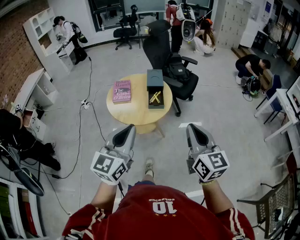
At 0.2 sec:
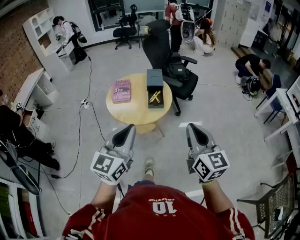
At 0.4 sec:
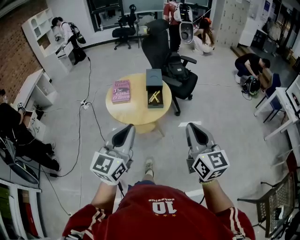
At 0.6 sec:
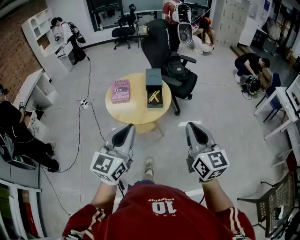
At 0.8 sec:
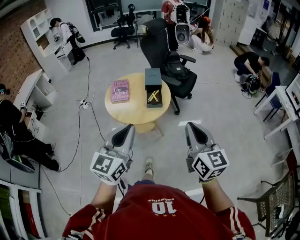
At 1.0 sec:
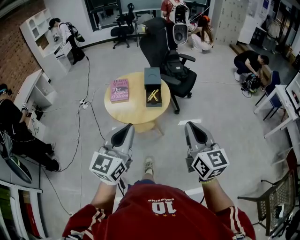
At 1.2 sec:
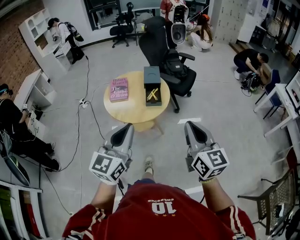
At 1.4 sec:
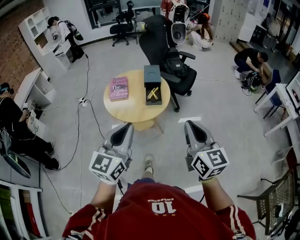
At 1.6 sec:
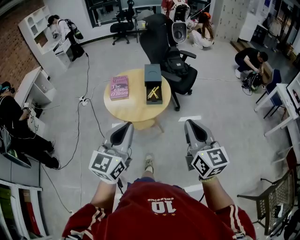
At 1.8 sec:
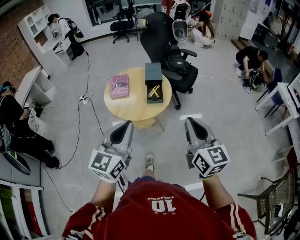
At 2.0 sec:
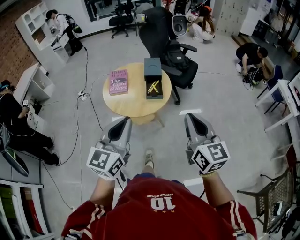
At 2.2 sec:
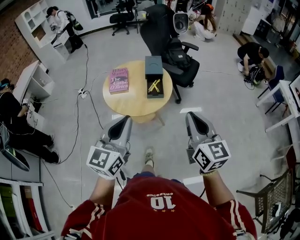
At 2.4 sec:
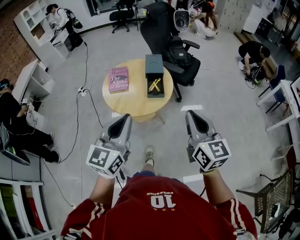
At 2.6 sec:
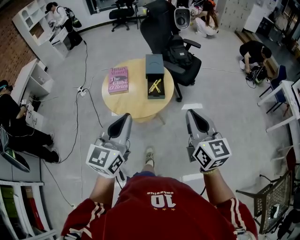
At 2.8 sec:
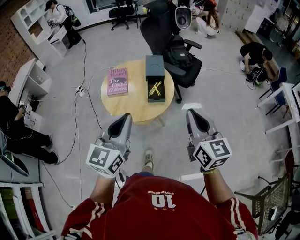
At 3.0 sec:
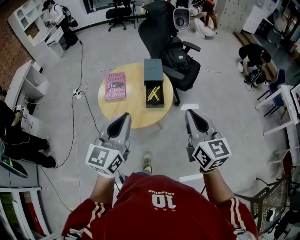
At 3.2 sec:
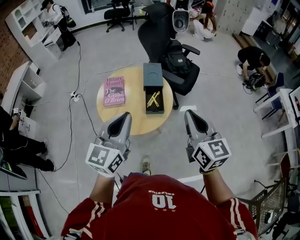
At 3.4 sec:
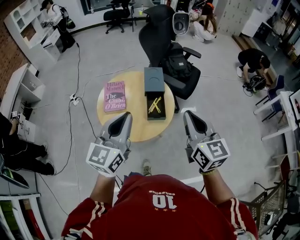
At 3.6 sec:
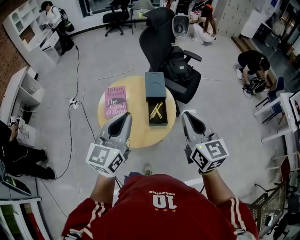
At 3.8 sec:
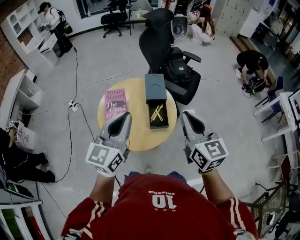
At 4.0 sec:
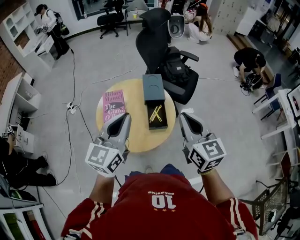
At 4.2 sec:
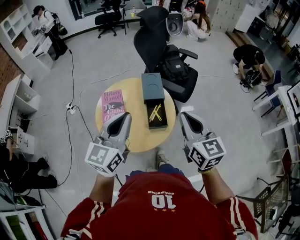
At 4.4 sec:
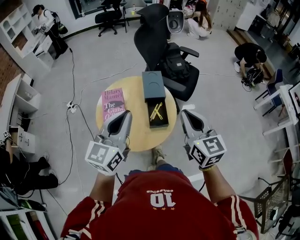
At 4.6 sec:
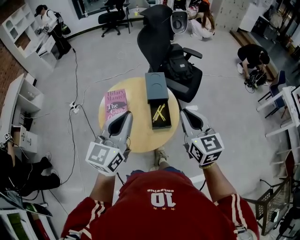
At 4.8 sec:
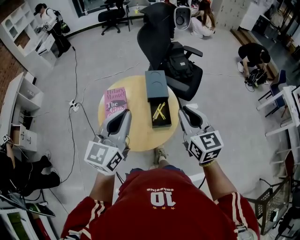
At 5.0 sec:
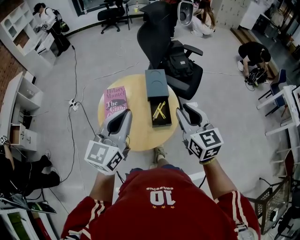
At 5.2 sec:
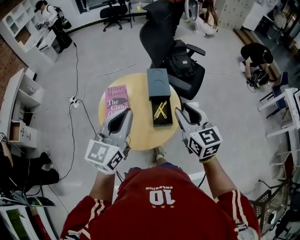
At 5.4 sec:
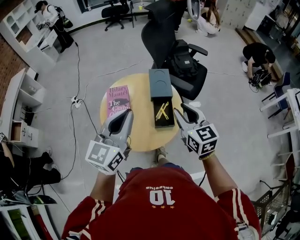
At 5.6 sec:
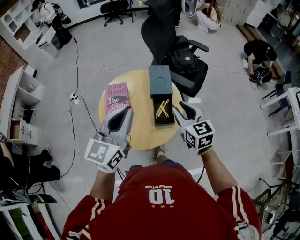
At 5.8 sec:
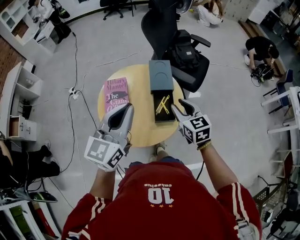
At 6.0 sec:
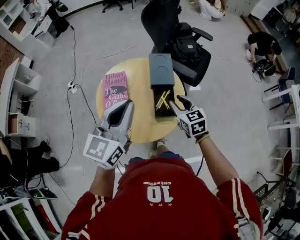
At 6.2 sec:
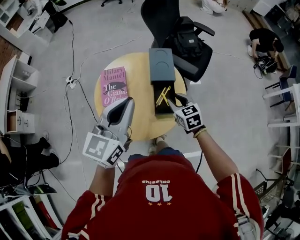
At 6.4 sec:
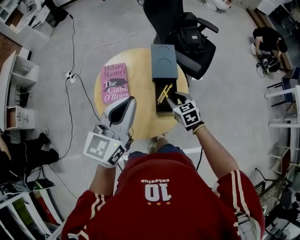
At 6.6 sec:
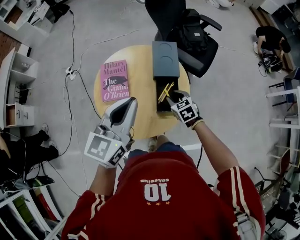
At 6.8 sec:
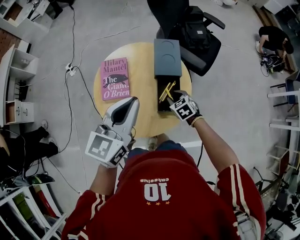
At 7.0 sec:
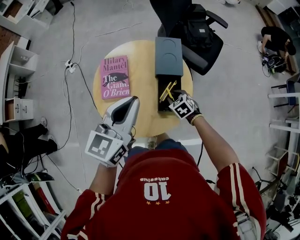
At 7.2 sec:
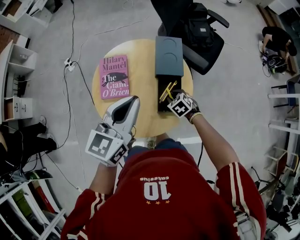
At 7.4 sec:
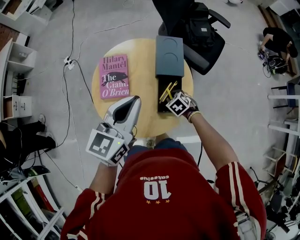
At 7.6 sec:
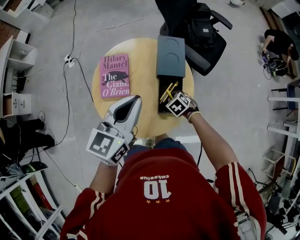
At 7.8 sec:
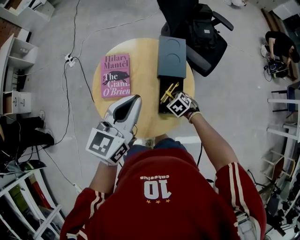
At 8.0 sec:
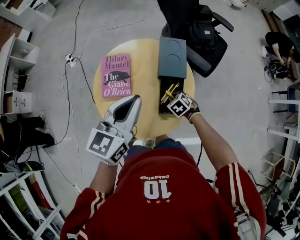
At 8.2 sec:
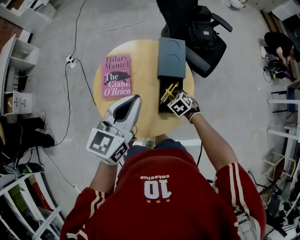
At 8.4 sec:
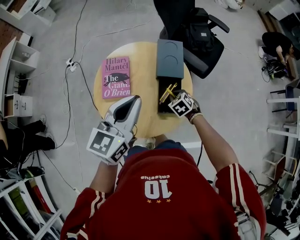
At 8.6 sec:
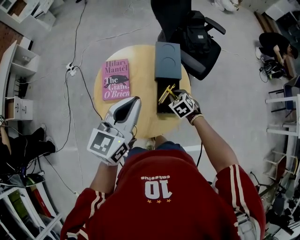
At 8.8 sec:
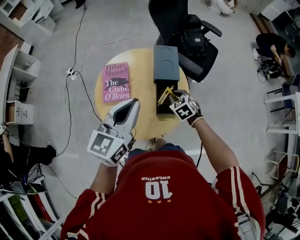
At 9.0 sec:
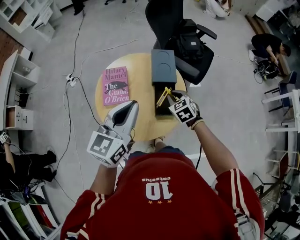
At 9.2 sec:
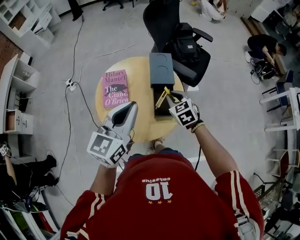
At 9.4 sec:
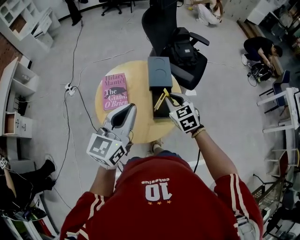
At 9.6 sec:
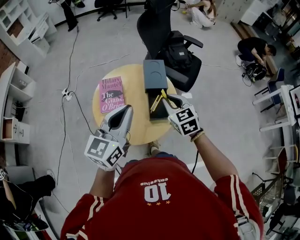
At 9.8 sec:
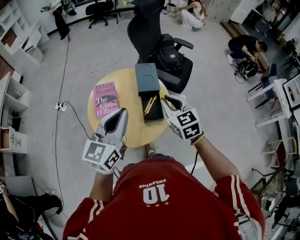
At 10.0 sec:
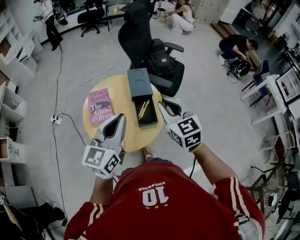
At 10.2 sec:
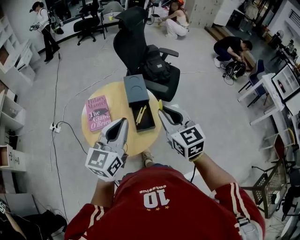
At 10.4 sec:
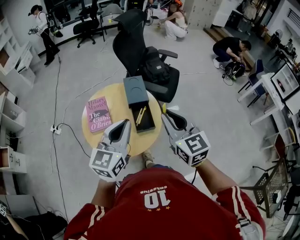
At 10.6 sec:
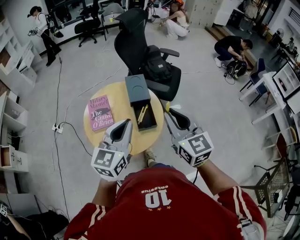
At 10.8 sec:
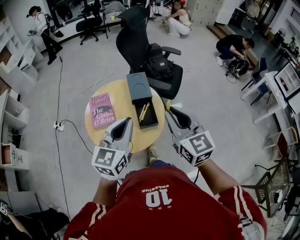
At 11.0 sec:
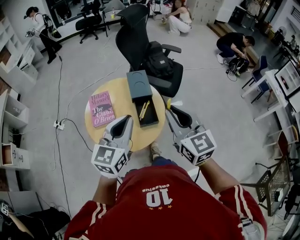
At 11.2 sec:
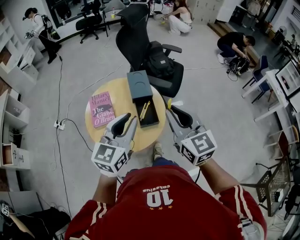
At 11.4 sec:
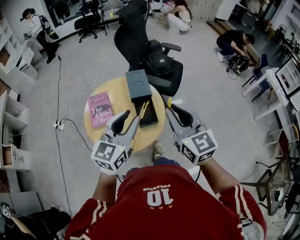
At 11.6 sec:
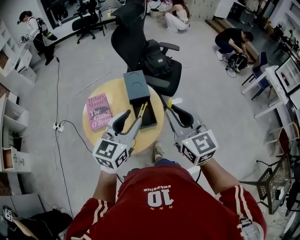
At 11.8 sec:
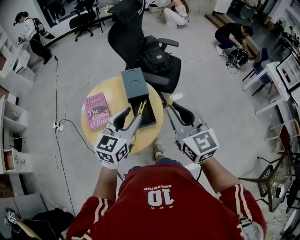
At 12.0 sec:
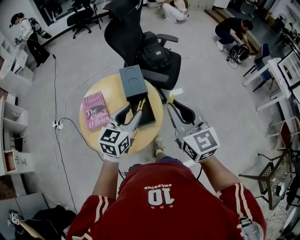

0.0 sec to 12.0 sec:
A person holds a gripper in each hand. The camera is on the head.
0.0 sec to 1.6 sec: The grippers make only small movements.
1.6 sec to 3.0 sec: Both grippers travel together forward, roughly 15 cm.
3.0 sec to 4.4 sec: The two grippers go about 15 cm forward.
4.4 sec to 6.0 sec: The right gripper goes roughly 25 cm downward and forward, turns by approximately 20 degrees, and opens up. Meanwhile the left gripper shifts some 5 cm forward.
6.0 sec to 7.6 sec: The right gripper shifts some 25 cm downward, and tilts its fingers about 40 degrees downward; the left gripper heads downward and forward, covering approximately 10 cm.
7.6 sec to 9.0 sec: The left gripper travels backward by some 5 cm. The right gripper goes about 15 cm upward, and rotates some 30 degrees.
9.0 sec to 10.4 sec: The right gripper heads upward and backward, covering about 35 cm, and points its fingers approximately 40 degrees further upward. Meanwhile the left gripper is displaced backward and to the right by some 10 cm.
10.4 sec to 12.0 sec: The right gripper moves roughly 5 cm. Meanwhile the left gripper travels downward and forward by about 15 cm, and opens.

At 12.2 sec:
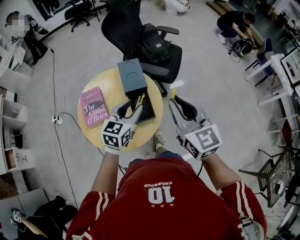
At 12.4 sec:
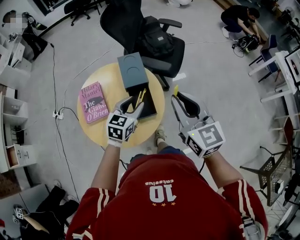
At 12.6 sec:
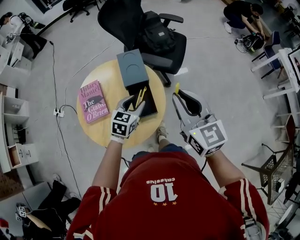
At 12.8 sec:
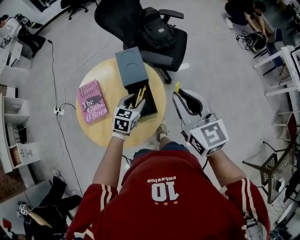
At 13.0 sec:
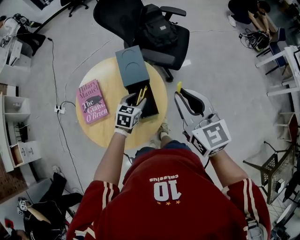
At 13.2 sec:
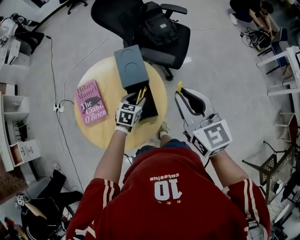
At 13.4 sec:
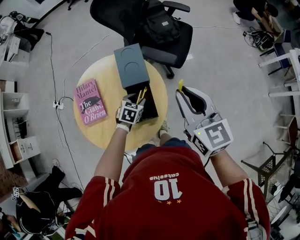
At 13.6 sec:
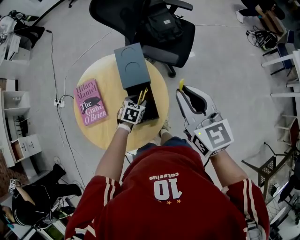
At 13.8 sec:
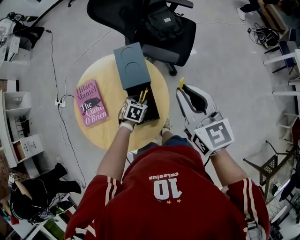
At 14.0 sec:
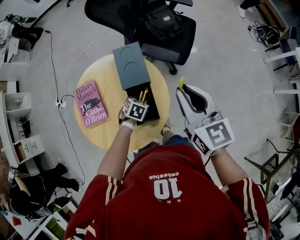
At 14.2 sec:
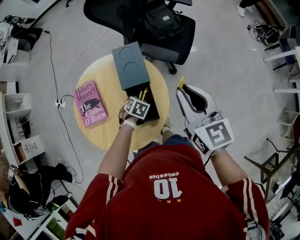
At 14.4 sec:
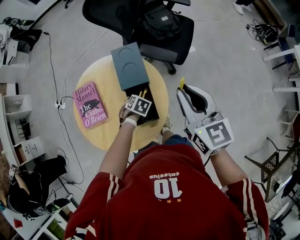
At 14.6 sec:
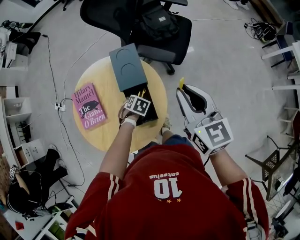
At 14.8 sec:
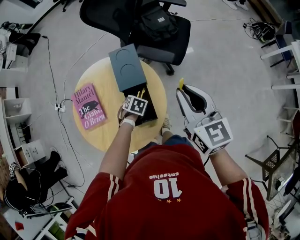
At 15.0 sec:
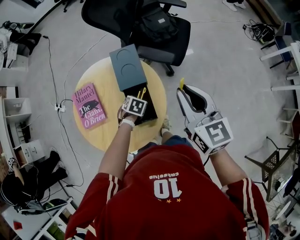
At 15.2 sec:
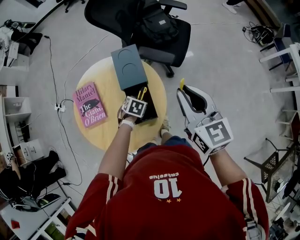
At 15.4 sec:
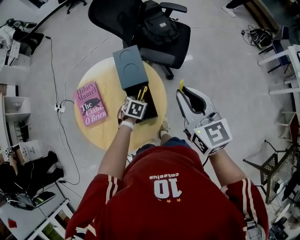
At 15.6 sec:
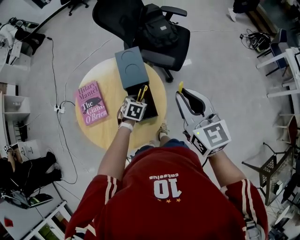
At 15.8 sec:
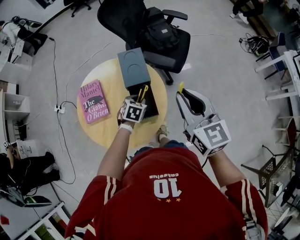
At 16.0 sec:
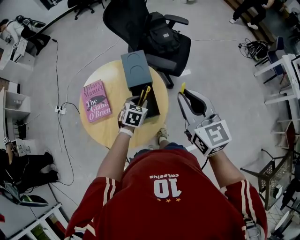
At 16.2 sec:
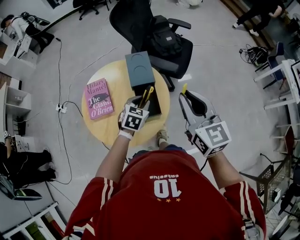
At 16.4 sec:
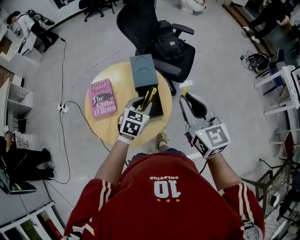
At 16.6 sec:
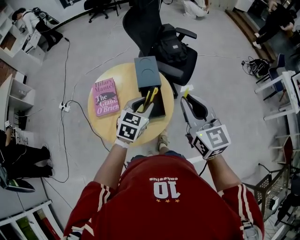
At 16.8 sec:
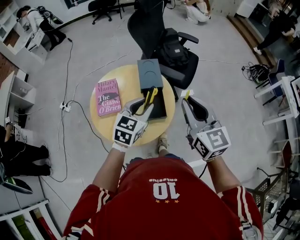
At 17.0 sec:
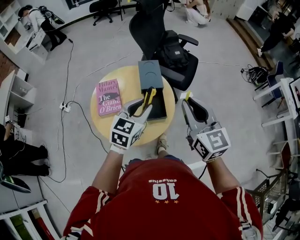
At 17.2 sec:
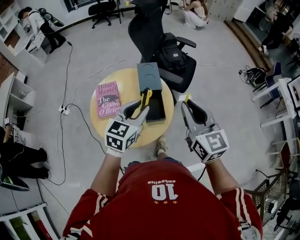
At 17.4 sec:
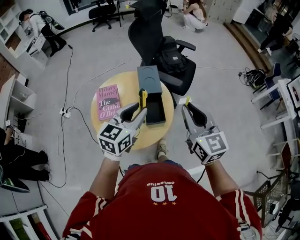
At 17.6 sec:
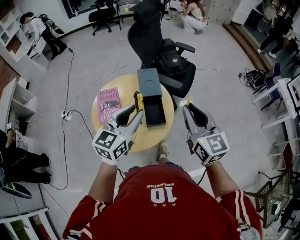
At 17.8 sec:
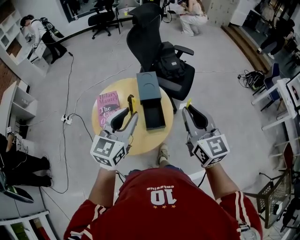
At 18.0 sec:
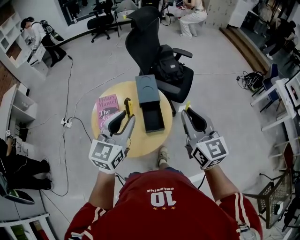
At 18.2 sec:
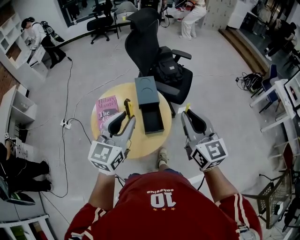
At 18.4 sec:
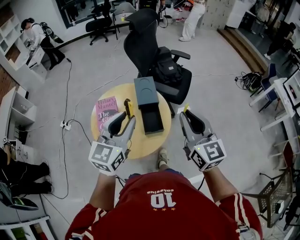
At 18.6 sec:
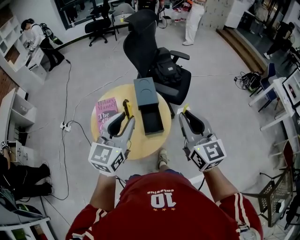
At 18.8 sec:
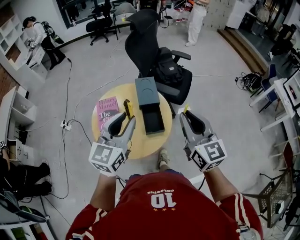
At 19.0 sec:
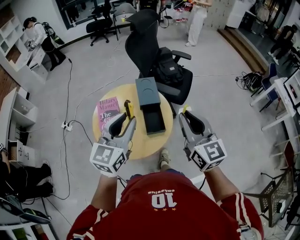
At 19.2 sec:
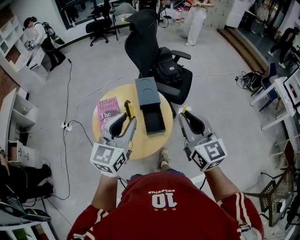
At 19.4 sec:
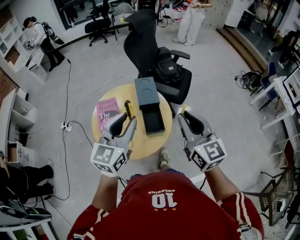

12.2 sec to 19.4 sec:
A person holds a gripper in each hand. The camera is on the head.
12.2 sec to 13.6 sec: The left gripper shifts about 25 cm downward, and points its fingers some 40 degrees further downward. The right gripper shifts some 15 cm forward and downward.
15.0 sec to 16.6 sec: The right gripper shifts by some 15 cm. Meanwhile the left gripper goes roughly 30 cm upward, and points its fingers approximately 40 degrees further upward.
16.6 sec to 18.0 sec: The right gripper ends up roughly 5 cm from where it was; the left gripper travels upward, backward and to the left by approximately 20 cm, and changes its angle by about 30 degrees.
18.0 sec to 19.4 sec: The grippers stay close to where they were, moving slightly.

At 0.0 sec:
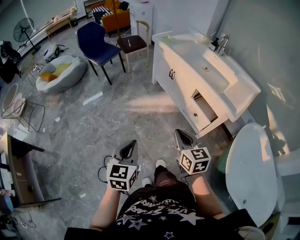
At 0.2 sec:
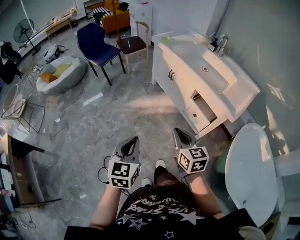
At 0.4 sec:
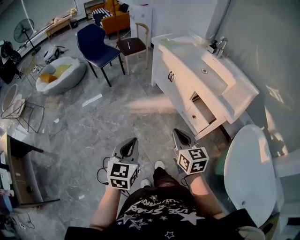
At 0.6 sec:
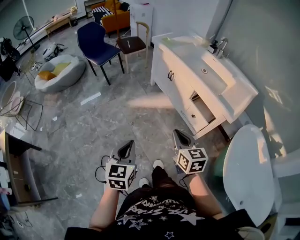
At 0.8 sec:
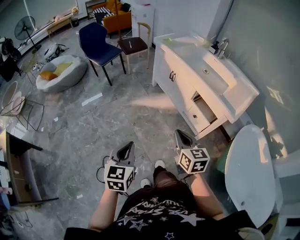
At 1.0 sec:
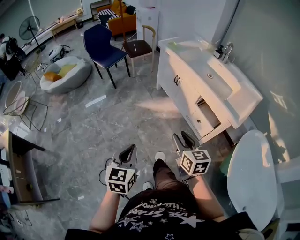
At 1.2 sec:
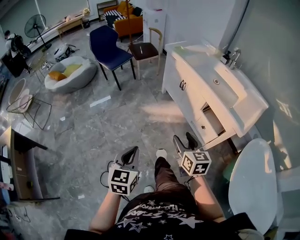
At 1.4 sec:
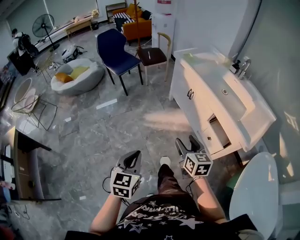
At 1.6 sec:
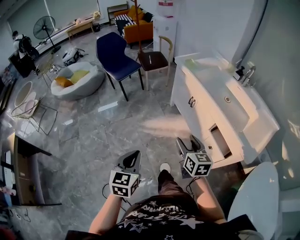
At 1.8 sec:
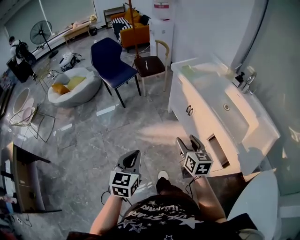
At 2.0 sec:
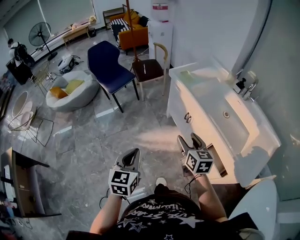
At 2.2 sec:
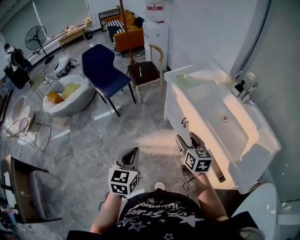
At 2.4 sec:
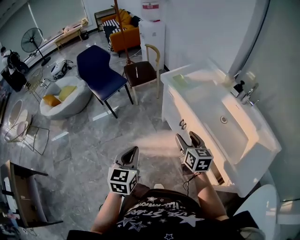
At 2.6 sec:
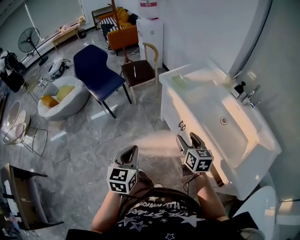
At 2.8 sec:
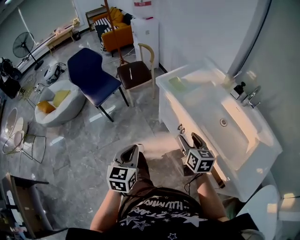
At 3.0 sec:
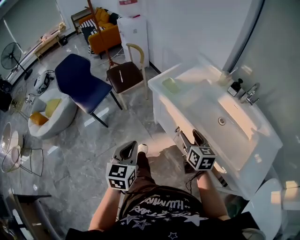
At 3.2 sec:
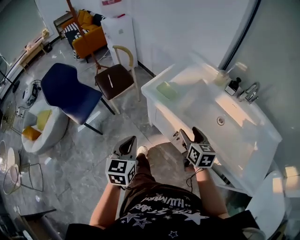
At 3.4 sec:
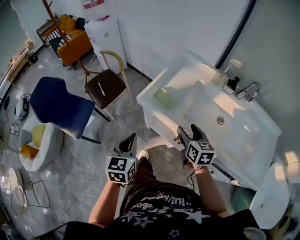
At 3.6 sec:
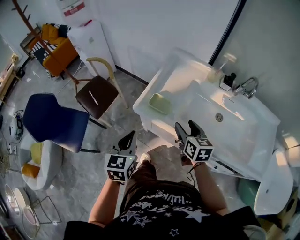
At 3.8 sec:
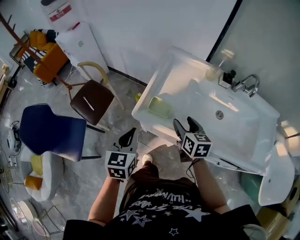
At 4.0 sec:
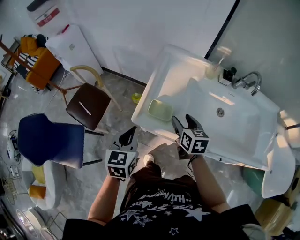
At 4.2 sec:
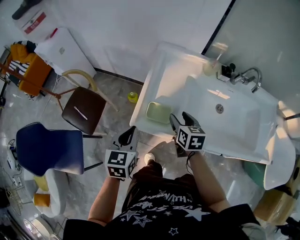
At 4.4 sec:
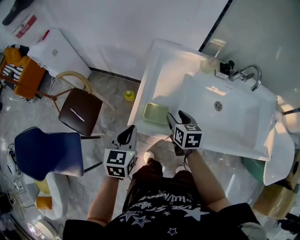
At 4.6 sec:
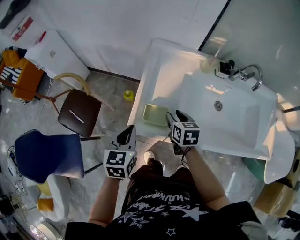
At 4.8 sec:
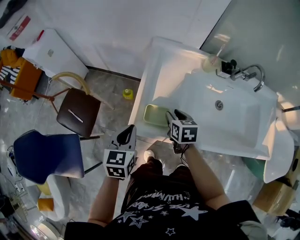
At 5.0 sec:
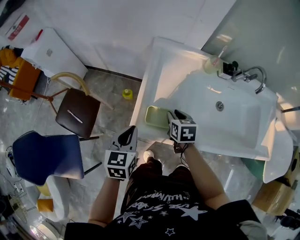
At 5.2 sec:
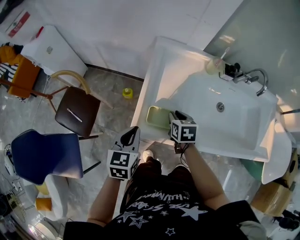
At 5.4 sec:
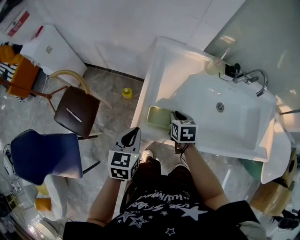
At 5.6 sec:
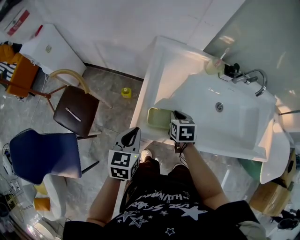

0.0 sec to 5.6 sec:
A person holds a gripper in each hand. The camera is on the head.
0.0 sec to 1.4 sec: The left gripper heads forward, covering some 5 cm. The right gripper moves forward, roughly 10 cm, and opens up.
1.4 sec to 2.8 sec: Both grippers are carried forward, roughly 40 cm.
2.8 sec to 4.2 sec: The left gripper ends up approximately 50 cm from where it was, and changes its angle by roughly 40 degrees; the right gripper changes place by approximately 35 cm, and changes its angle by approximately 40 degrees.
4.2 sec to 5.6 sec: The left gripper changes place by some 5 cm; the right gripper goes about 5 cm downward, and closes its fingers.
